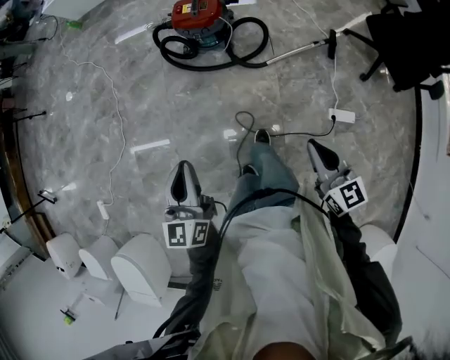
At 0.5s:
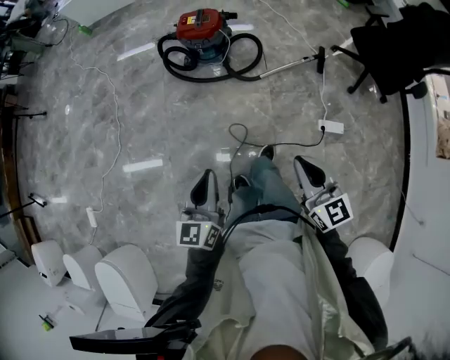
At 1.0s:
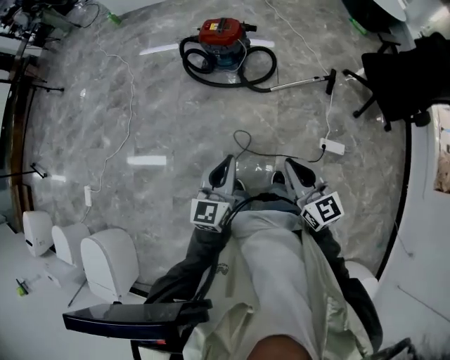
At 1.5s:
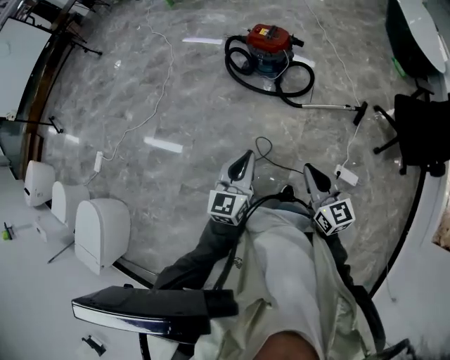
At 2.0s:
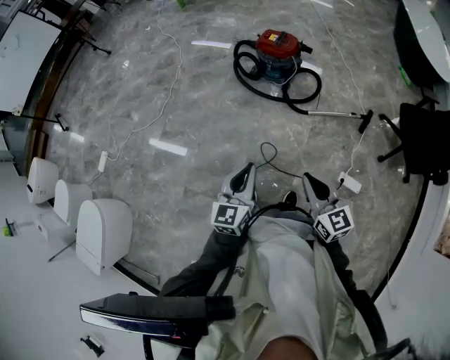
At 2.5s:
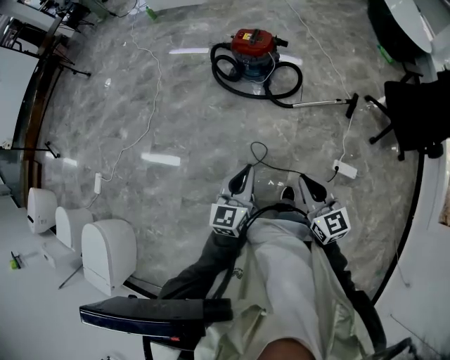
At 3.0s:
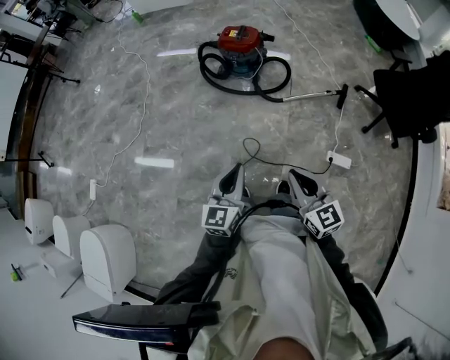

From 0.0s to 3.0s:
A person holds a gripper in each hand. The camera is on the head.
From 0.0s to 1.5s: The left gripper goes roughly 20 cm backward and to the right. Meanwhile the right gripper is displaced backward, upward and to the left by roughly 15 cm.
From 1.5s to 3.0s: The grippers make only small movements.

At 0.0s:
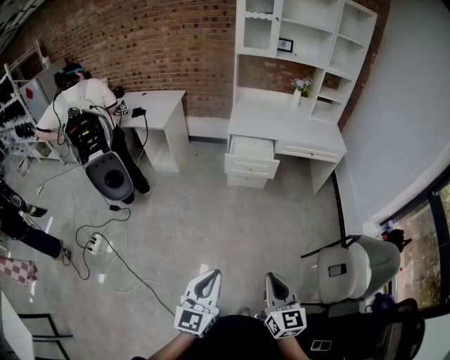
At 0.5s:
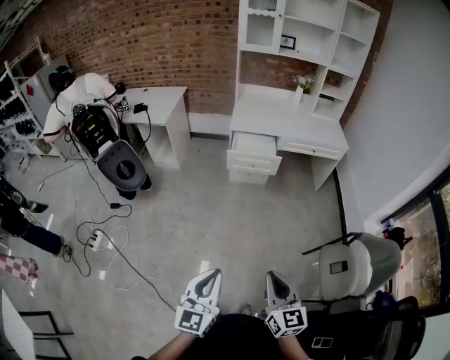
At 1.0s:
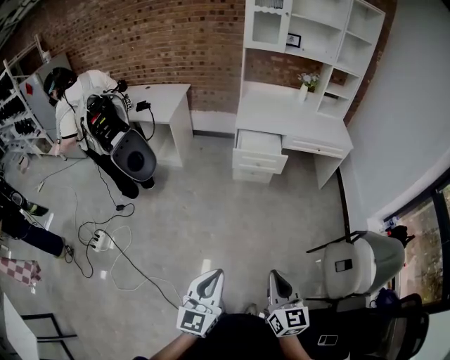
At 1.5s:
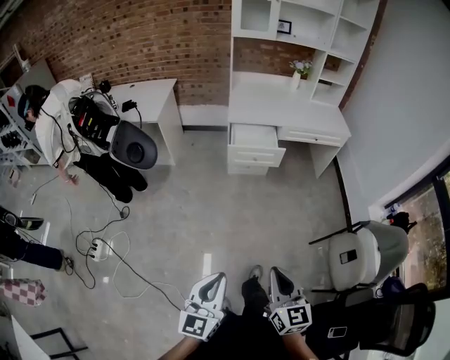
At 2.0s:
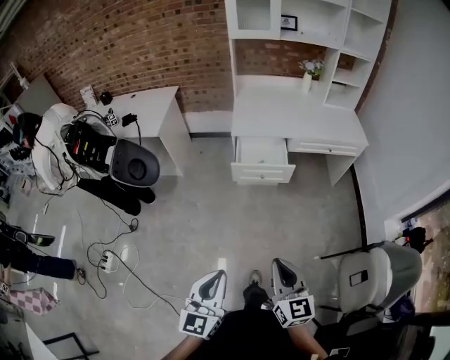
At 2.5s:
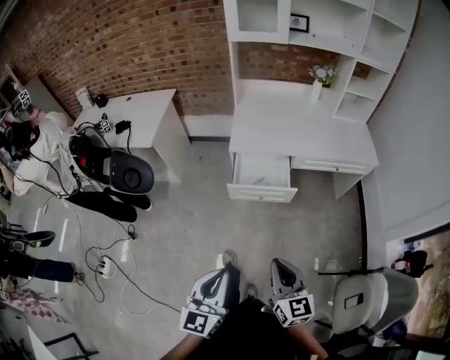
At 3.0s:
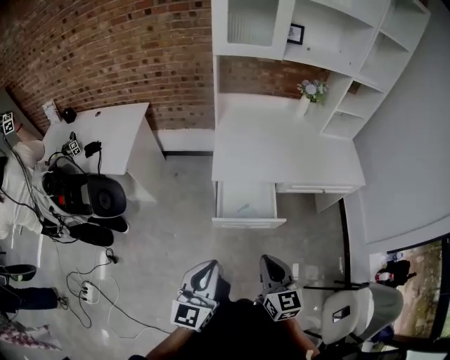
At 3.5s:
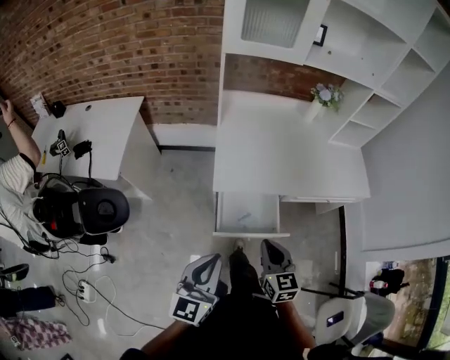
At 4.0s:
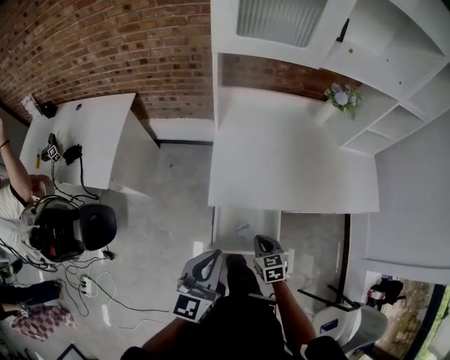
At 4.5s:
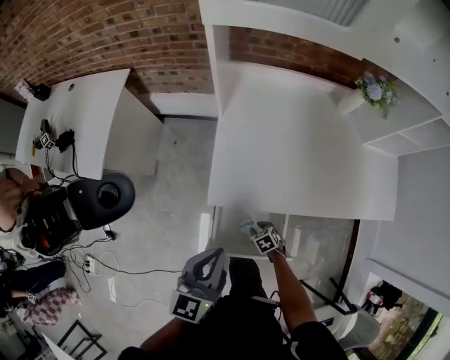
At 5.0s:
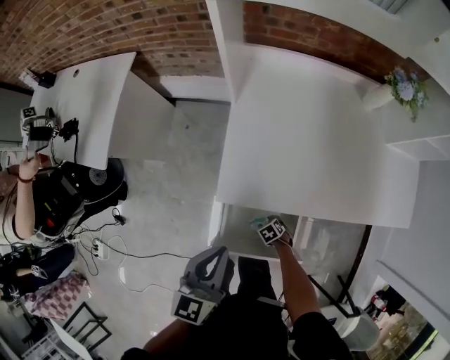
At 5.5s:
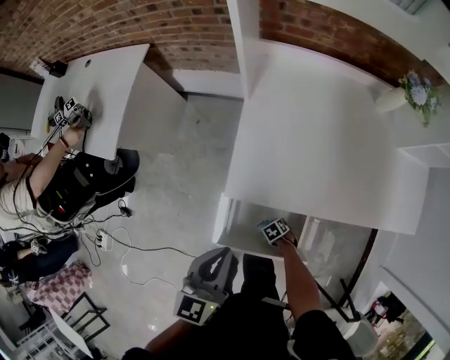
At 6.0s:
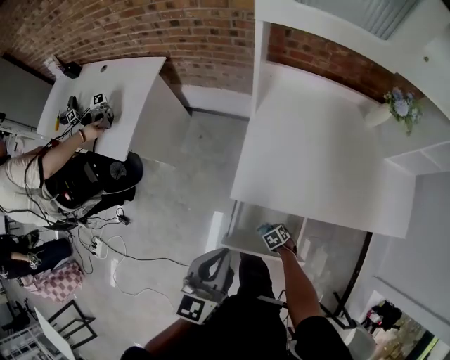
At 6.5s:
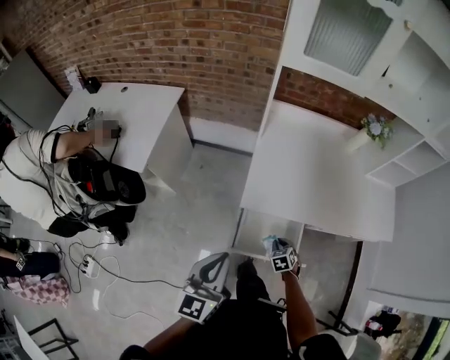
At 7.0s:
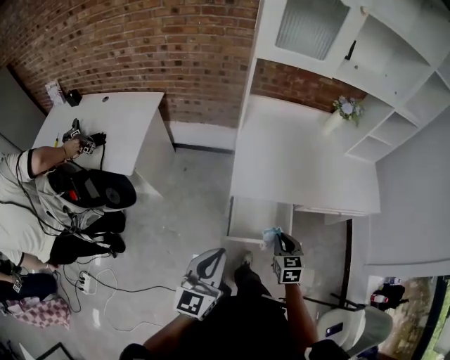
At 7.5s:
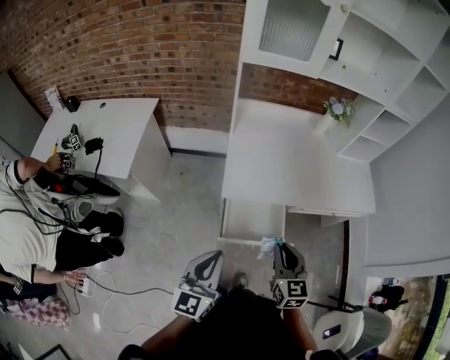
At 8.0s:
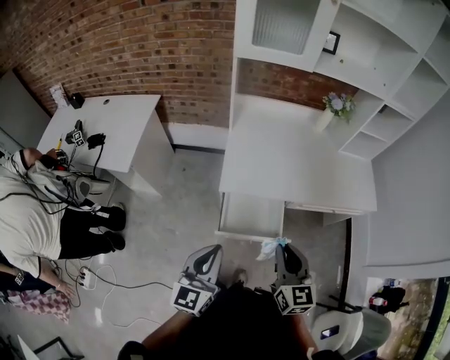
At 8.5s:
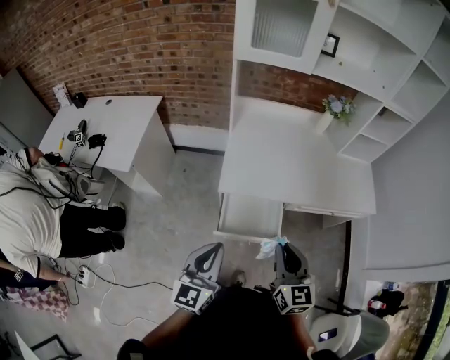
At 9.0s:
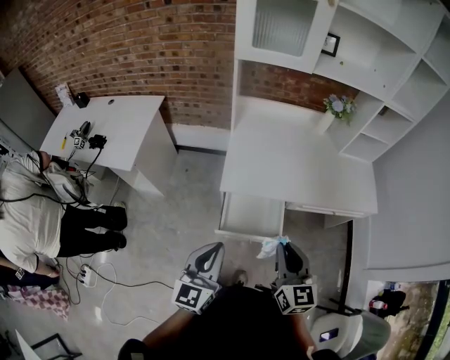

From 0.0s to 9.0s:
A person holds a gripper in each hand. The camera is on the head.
From 0.0s to 2.0s: The two grippers go some 25 cm forward.
From 2.0s to 4.5s: The two grippers travel together, about 80 cm. The right gripper tips its fingers downward by roughly 60 degrees, and opens.
From 4.5s to 7.0s: The left gripper moves some 25 cm. Meanwhile the right gripper heads upward, covering roughly 30 cm, and points its fingers some 30 degrees further upward.
From 7.0s to 9.0s: The right gripper heads upward and backward, covering roughly 20 cm, and turns by approximately 30 degrees; the left gripper heads to the right, covering some 10 cm.

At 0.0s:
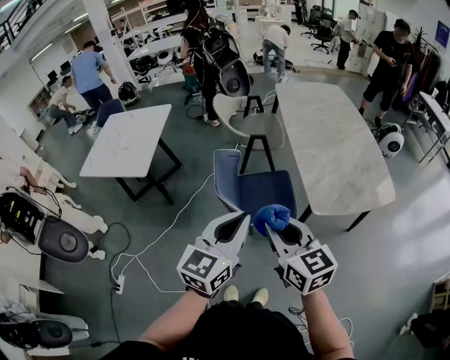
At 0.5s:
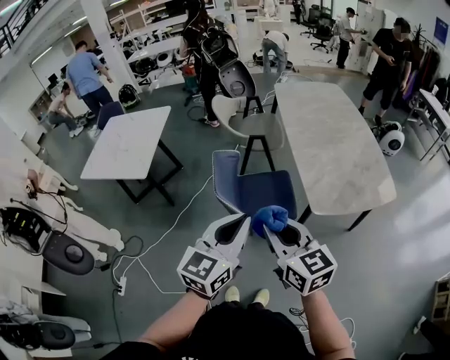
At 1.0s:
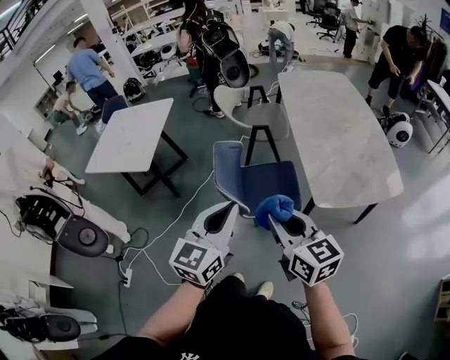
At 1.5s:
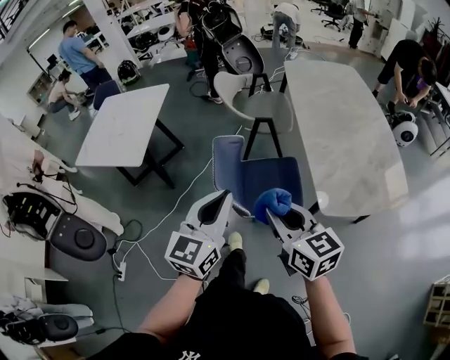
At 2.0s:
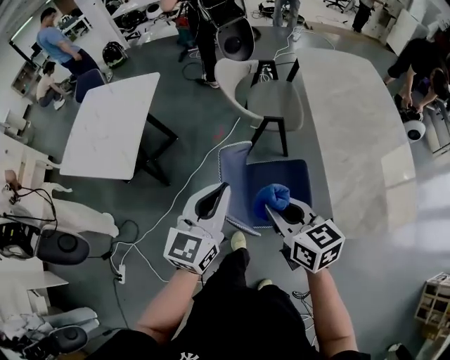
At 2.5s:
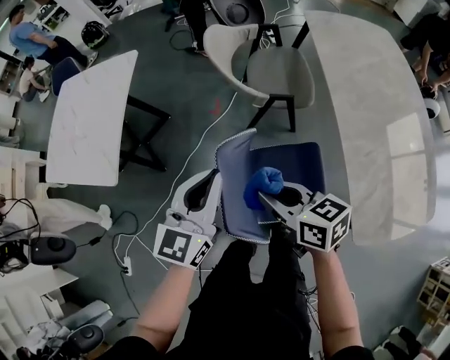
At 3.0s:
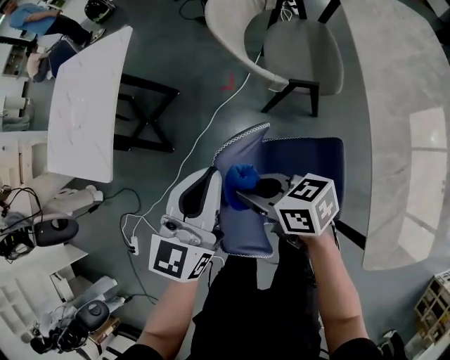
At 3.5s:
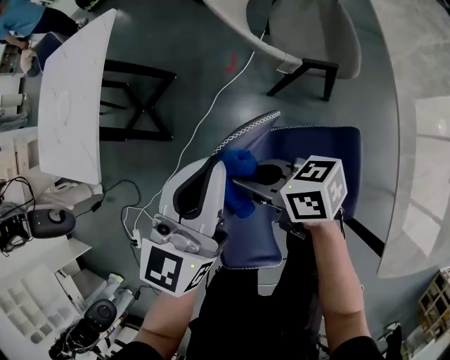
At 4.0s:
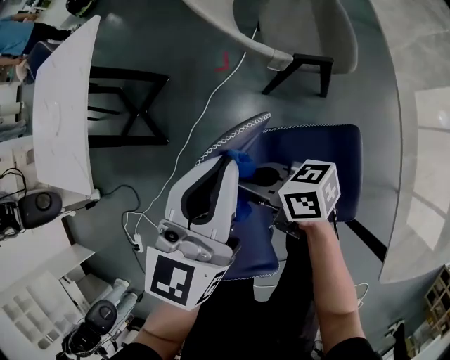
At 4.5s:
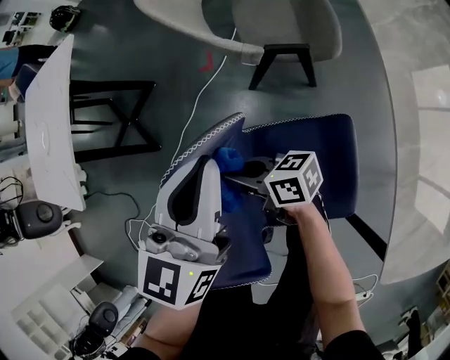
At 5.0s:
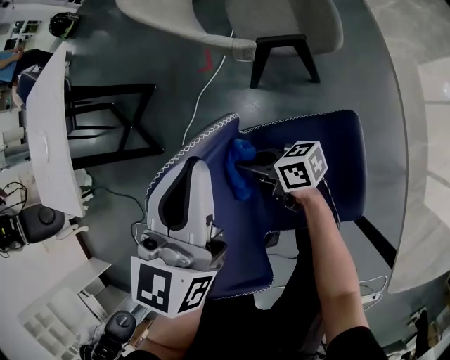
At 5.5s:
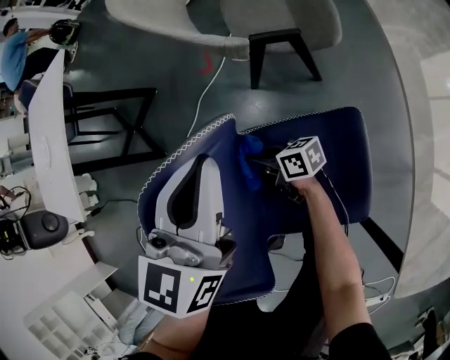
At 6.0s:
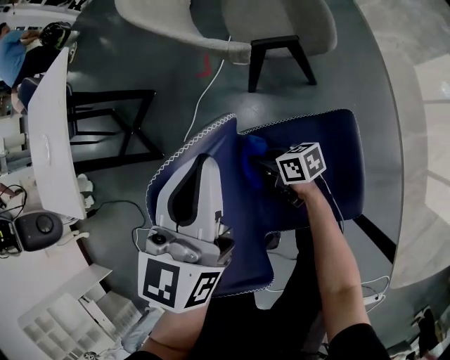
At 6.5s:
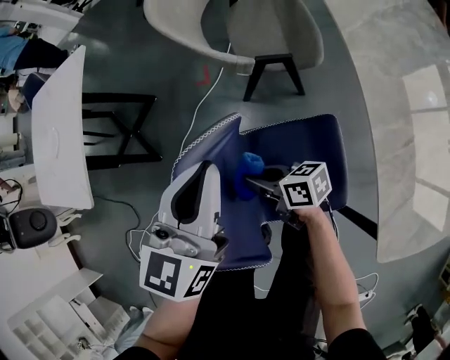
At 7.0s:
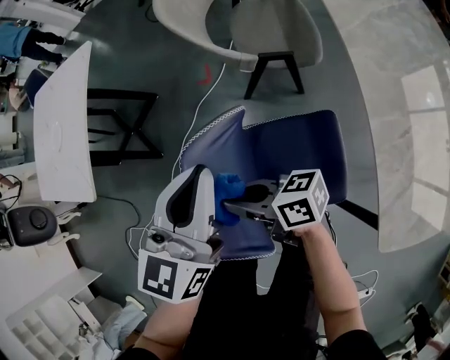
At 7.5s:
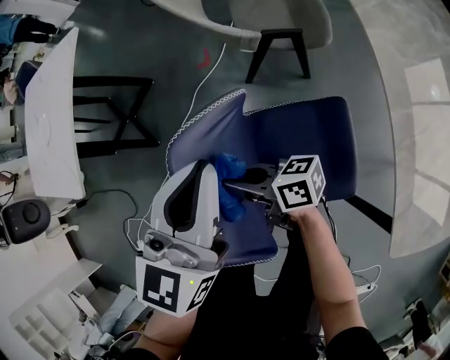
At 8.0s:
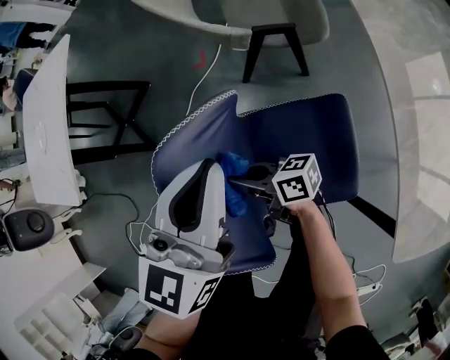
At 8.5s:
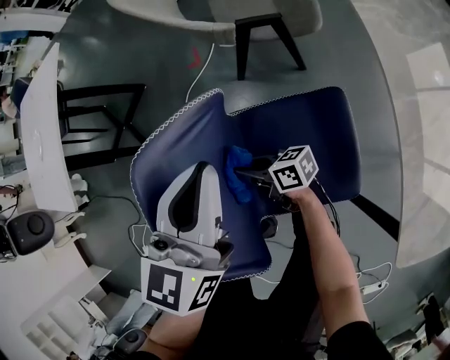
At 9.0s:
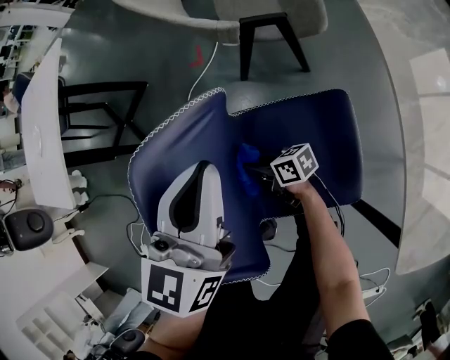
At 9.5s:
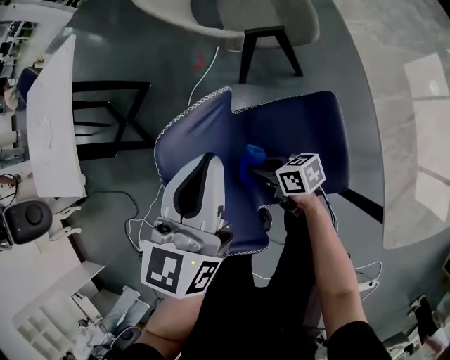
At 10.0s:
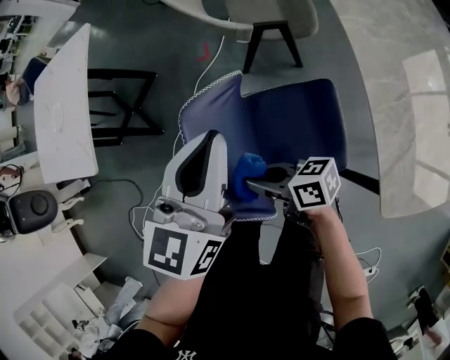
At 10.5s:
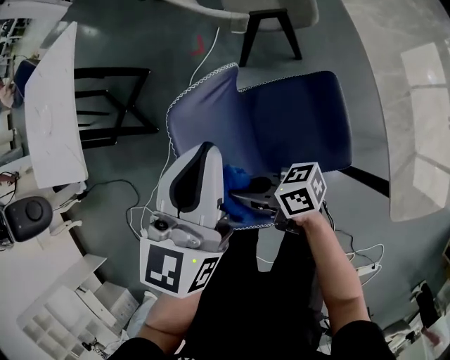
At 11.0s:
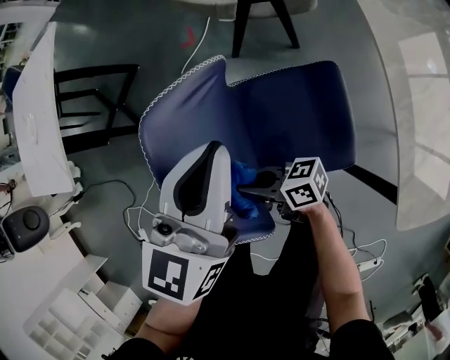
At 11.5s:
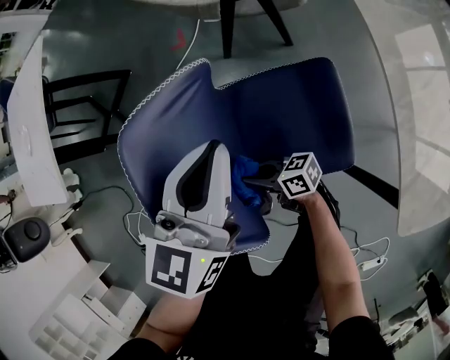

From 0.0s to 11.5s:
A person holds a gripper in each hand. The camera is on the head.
From 0.0s to 2.0s: The grippers both shift forward by some 30 cm.
From 2.0s to 4.0s: The left gripper heads forward, downward and to the right, covering some 35 cm; the right gripper goes approximately 40 cm downward and forward, and changes its angle by some 50 degrees.
From 4.0s to 6.0s: The left gripper heads downward, covering approximately 5 cm. Meanwhile the right gripper moves downward, about 20 cm.
From 6.0s to 7.5s: The left gripper travels upward by about 5 cm, while the right gripper travels upward and to the left by about 20 cm, and changes its angle by some 20 degrees.
From 7.5s to 9.5s: The left gripper moves about 10 cm downward and comes back, while the right gripper is displaced downward, to the right and backward by some 15 cm, and changes its angle by approximately 20 degrees.
From 9.5s to 11.5s: The right gripper shifts about 10 cm backward and to the left, and reaches approximately 15 cm upward, then returns, while the left gripper heads downward, covering about 5 cm.

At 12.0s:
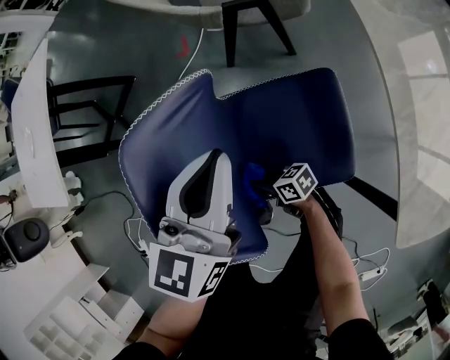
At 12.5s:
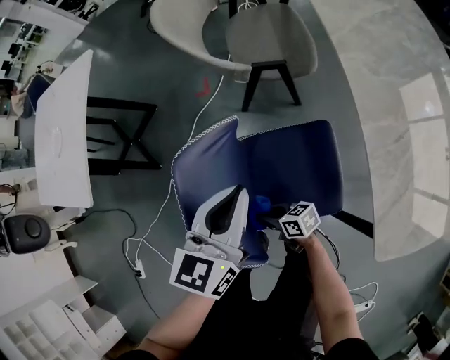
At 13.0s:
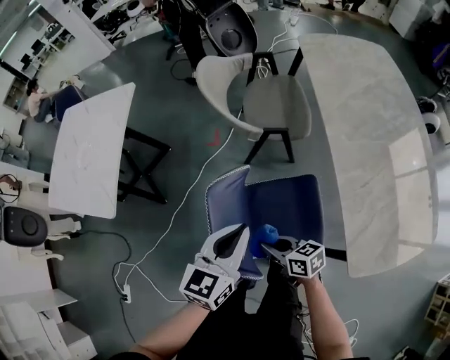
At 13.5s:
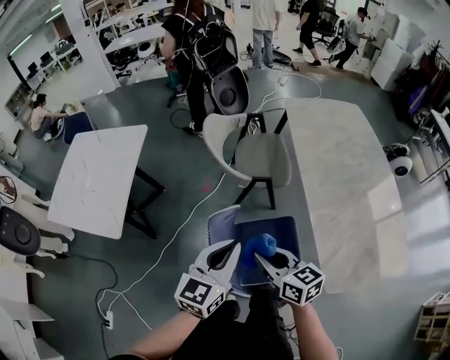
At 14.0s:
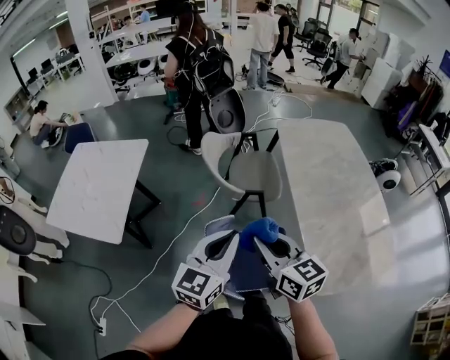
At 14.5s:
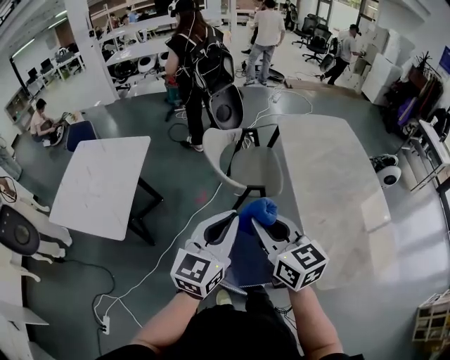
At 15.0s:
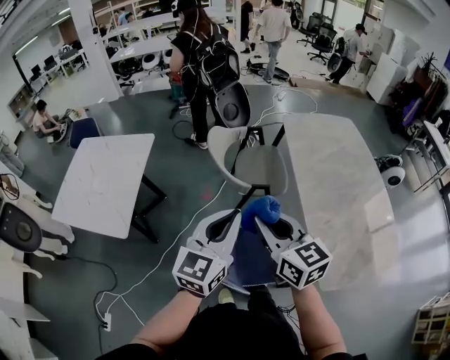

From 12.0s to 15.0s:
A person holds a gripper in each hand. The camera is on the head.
From 12.0s to 13.5s: The left gripper heads upward, covering some 30 cm. The right gripper is displaced upward by roughly 50 cm, and rotates some 50 degrees.
From 13.5s to 15.0s: Both grippers move upward, about 15 cm.
